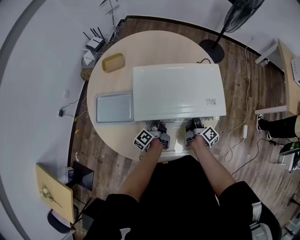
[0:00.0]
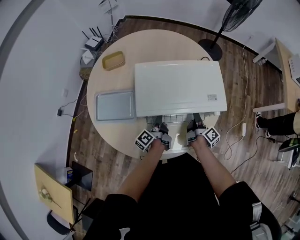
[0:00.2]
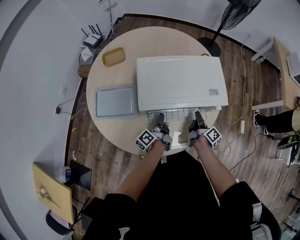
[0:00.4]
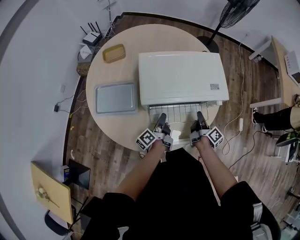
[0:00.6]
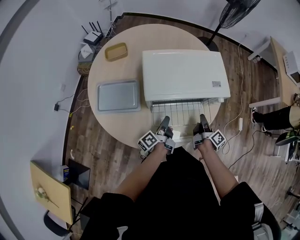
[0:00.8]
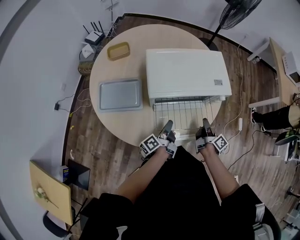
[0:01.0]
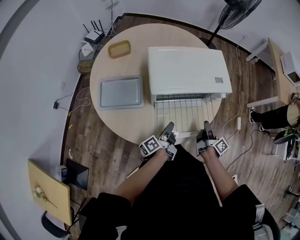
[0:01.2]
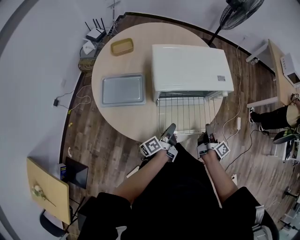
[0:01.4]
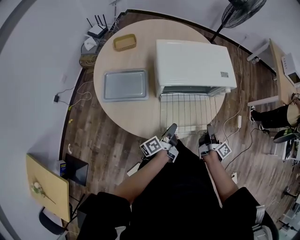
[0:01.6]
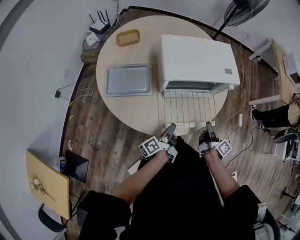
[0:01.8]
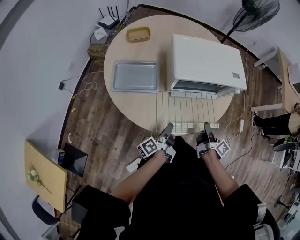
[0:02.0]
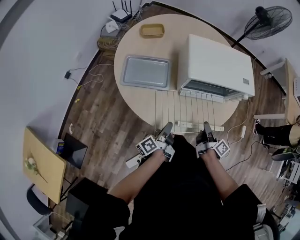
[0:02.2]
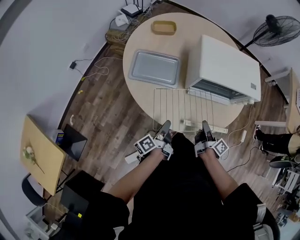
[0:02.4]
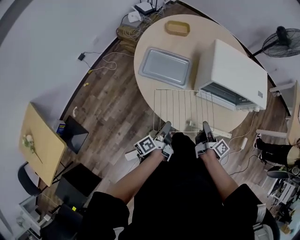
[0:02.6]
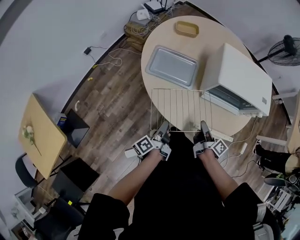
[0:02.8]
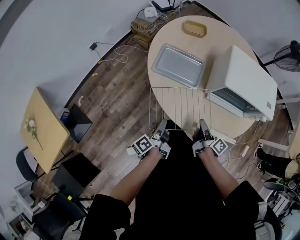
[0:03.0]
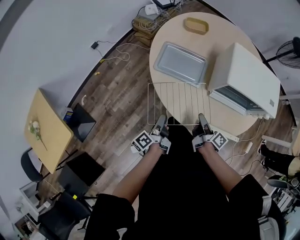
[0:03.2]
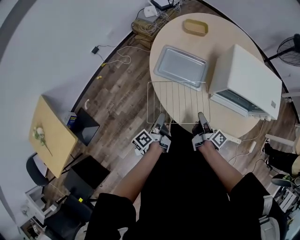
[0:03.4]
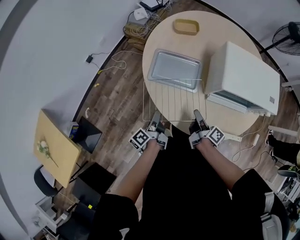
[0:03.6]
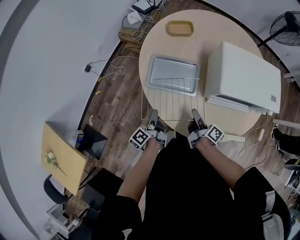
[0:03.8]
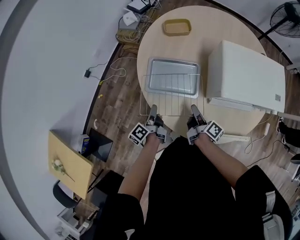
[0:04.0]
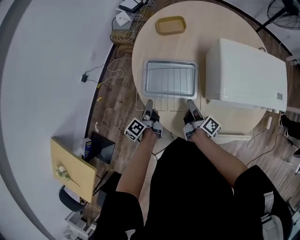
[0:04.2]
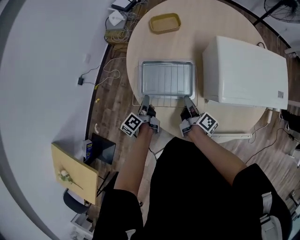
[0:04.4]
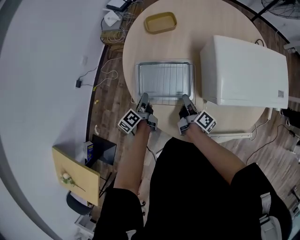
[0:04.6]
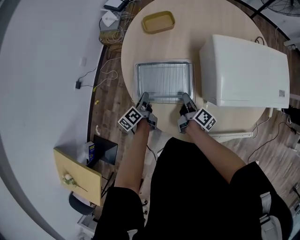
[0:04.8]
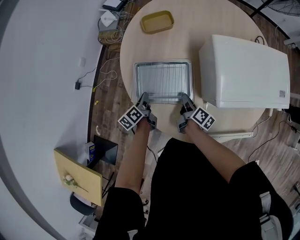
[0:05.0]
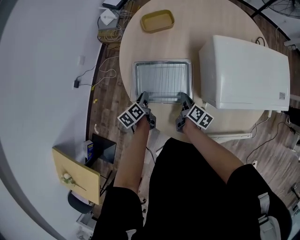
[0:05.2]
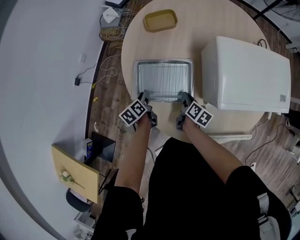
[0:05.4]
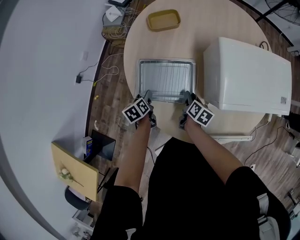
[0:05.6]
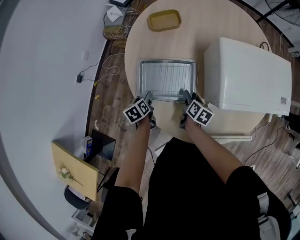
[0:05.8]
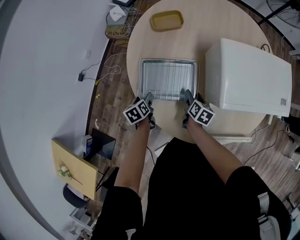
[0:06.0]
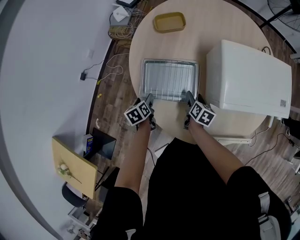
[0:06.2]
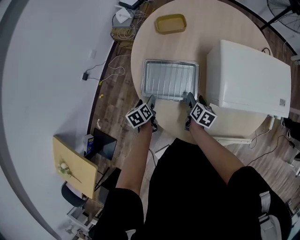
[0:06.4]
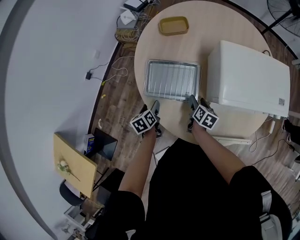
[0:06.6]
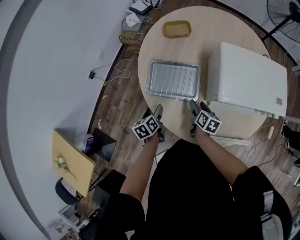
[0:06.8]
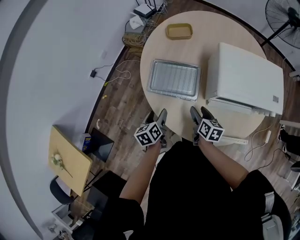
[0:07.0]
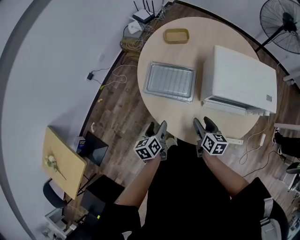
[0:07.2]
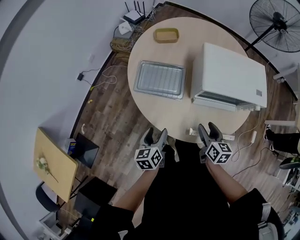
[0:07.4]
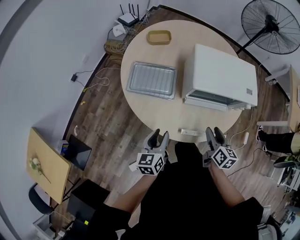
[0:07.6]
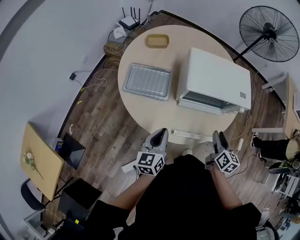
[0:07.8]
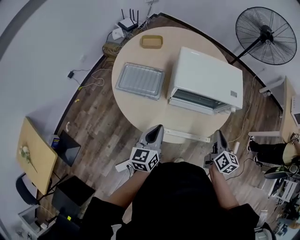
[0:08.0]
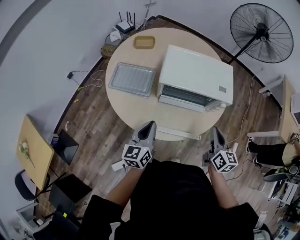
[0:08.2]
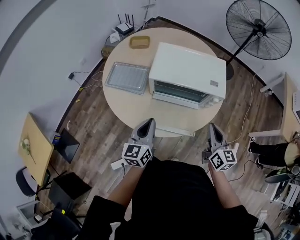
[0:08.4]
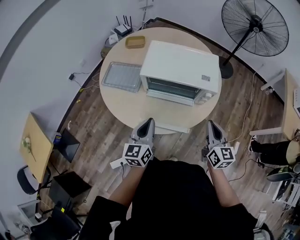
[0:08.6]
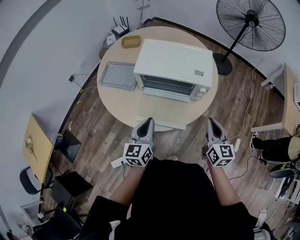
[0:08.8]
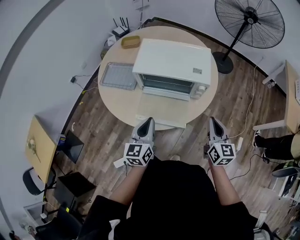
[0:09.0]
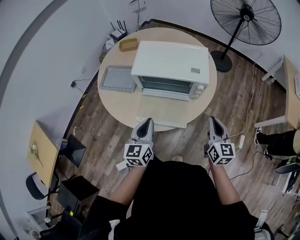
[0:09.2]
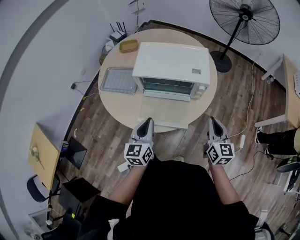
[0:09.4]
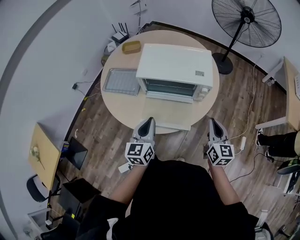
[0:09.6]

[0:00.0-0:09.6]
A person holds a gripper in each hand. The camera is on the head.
0:00.0 to 0:01.6: The grippers both shift backward by some 20 cm. The left gripper changes its angle by roughly 20 degrees.
0:01.6 to 0:03.2: The left gripper ends up approximately 30 cm from where it was, and turns by roughly 40 degrees. Meanwhile the right gripper moves some 30 cm, and swivels roughly 30 degrees.
0:03.2 to 0:04.8: The left gripper heads forward, covering approximately 30 cm, and swivels some 40 degrees; the right gripper goes some 25 cm forward and downward.
0:04.8 to 0:06.4: The left gripper moves approximately 5 cm, changes its angle by approximately 30 degrees, and opens, while the right gripper turns by about 40 degrees, and opens up.
0:06.4 to 0:08.0: Both grippers travel together to the right, backward and upward, approximately 40 cm. The left gripper tilts its fingers roughly 40 degrees upward, and closes its fingers, while the right gripper swivels roughly 30 degrees, and closes up.
0:08.0 to 0:09.6: Both grippers move to the right, some 15 cm.

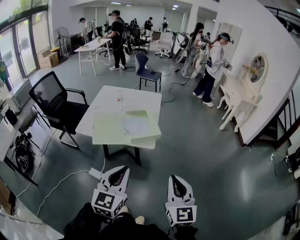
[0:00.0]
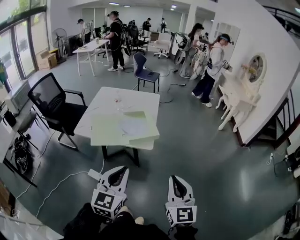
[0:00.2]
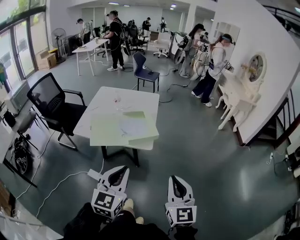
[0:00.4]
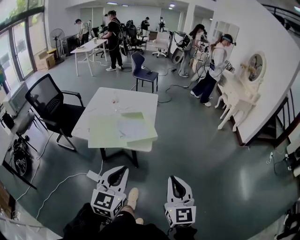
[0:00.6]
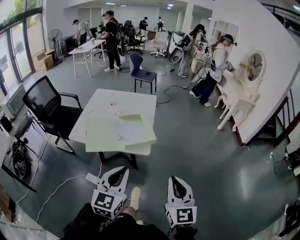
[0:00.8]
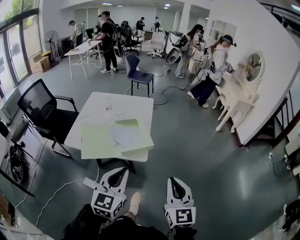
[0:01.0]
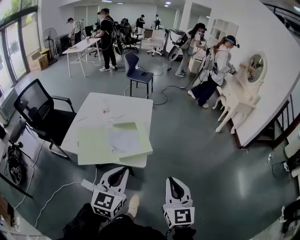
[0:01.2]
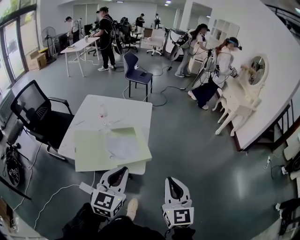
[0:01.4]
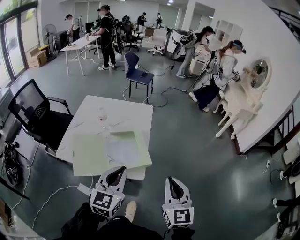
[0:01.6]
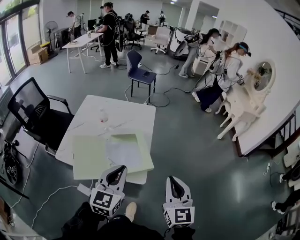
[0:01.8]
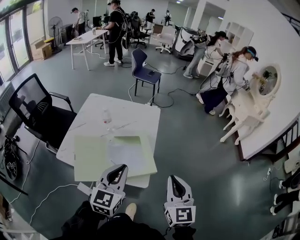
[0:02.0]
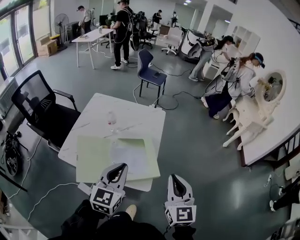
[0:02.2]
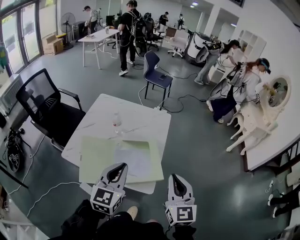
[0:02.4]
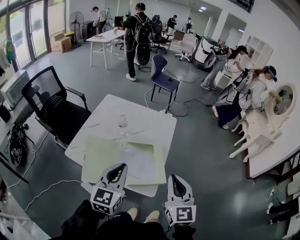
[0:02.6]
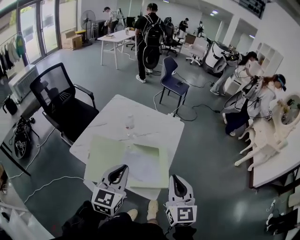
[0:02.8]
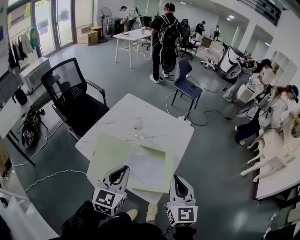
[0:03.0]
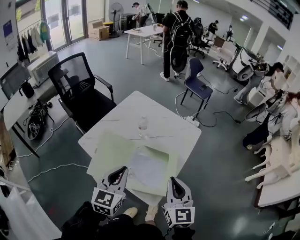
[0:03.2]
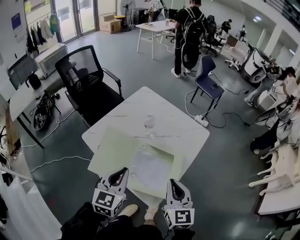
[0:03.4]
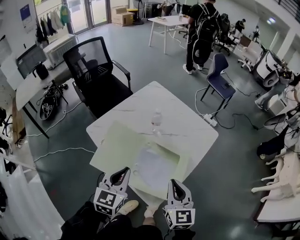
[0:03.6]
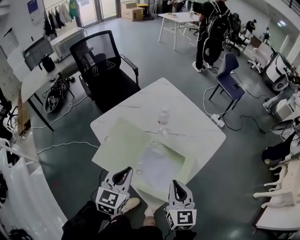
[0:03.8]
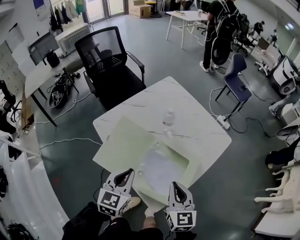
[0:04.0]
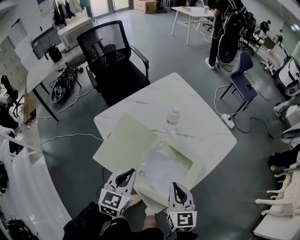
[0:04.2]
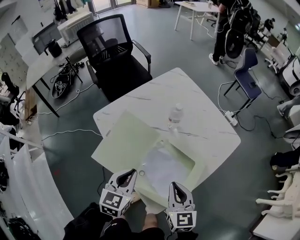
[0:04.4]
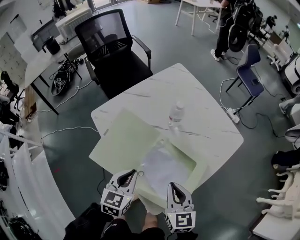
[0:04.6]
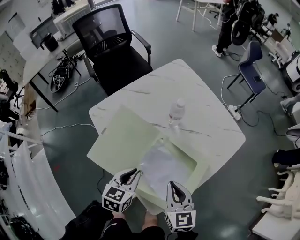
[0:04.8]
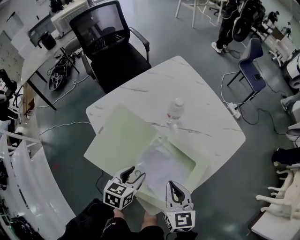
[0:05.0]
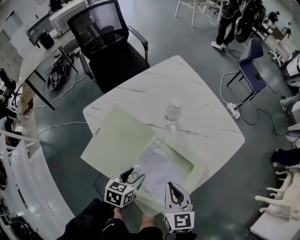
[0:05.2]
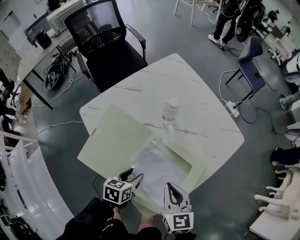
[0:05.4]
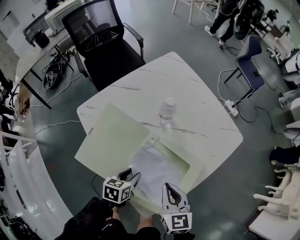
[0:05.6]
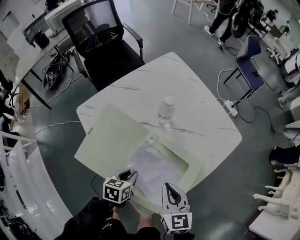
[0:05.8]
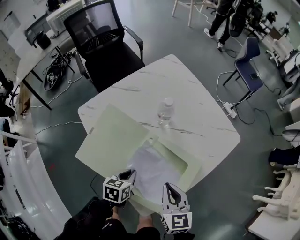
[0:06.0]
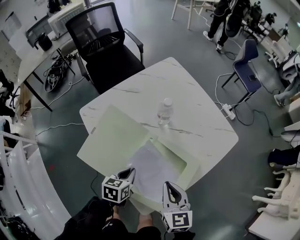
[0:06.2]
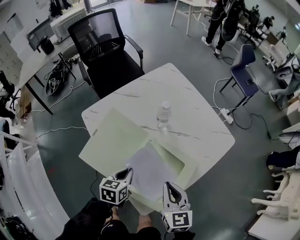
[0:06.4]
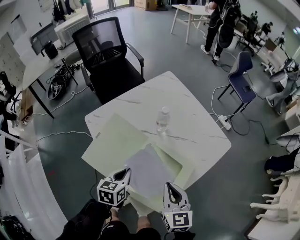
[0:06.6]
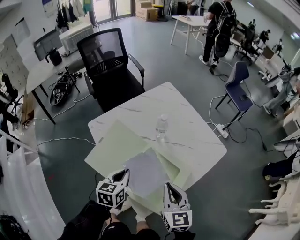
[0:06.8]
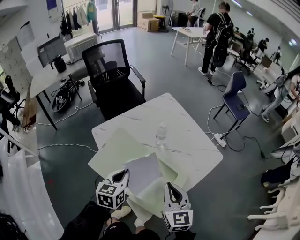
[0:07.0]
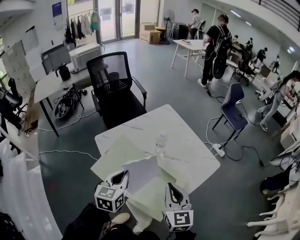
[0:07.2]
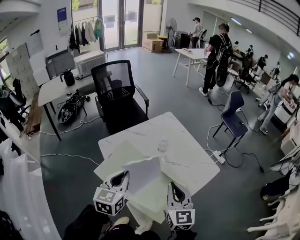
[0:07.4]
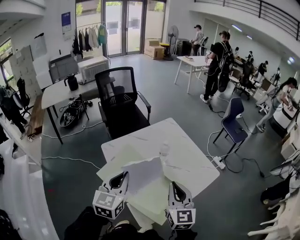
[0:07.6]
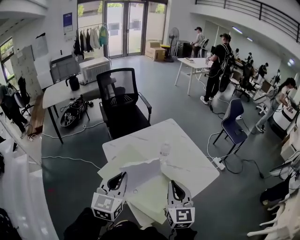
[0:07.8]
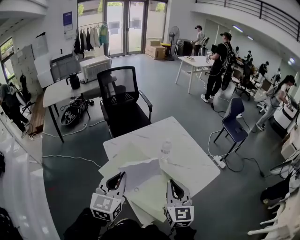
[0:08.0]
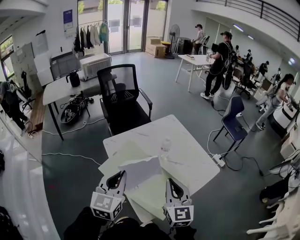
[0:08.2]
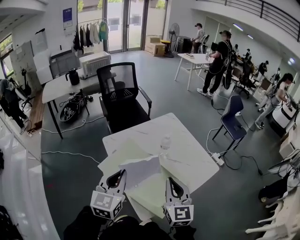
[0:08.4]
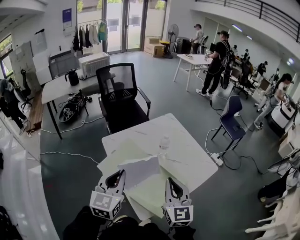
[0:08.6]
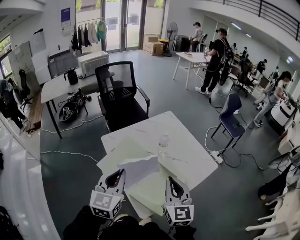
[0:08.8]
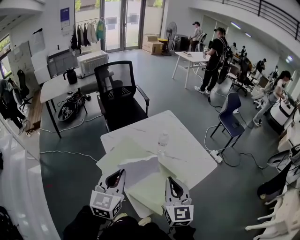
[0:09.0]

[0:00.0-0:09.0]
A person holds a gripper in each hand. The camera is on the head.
0:00.0 to 0:01.6: The grippers both shift forward by roughly 30 cm.
0:01.6 to 0:03.0: The two grippers go roughly 20 cm forward and to the left. The right gripper rotates some 20 degrees. The left gripper turns by roughly 20 degrees.
0:03.0 to 0:04.4: Both grippers move downward, approximately 20 cm. The left gripper rotates some 30 degrees, while the right gripper swivels about 30 degrees.
0:04.4 to 0:06.0: The left gripper shifts about 15 cm downward, swivels approximately 30 degrees, and opens and closes again. The right gripper moves downward, some 5 cm.
0:06.0 to 0:07.6: The right gripper moves upward, approximately 25 cm, and changes its angle by about 30 degrees. The left gripper heads upward, covering about 40 cm, and points its fingers some 40 degrees further upward.
0:07.6 to 0:09.0: The left gripper goes roughly 5 cm backward.

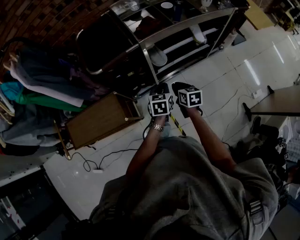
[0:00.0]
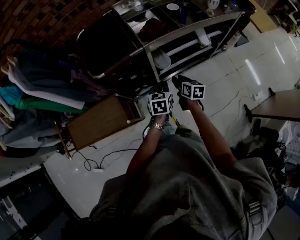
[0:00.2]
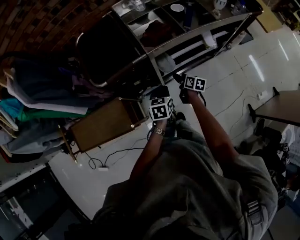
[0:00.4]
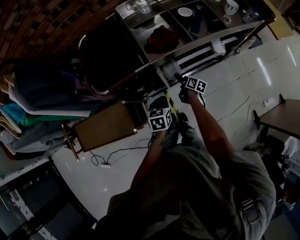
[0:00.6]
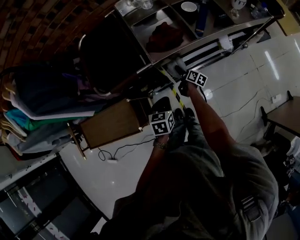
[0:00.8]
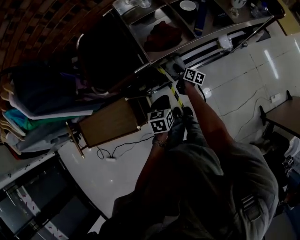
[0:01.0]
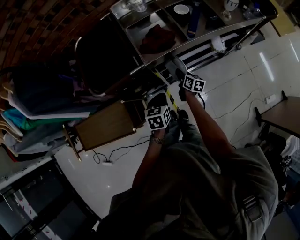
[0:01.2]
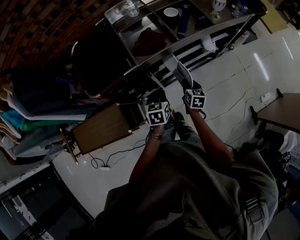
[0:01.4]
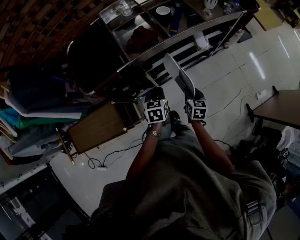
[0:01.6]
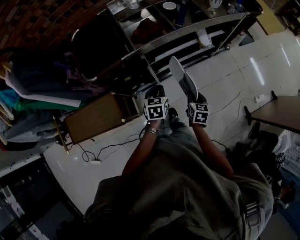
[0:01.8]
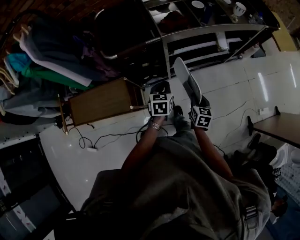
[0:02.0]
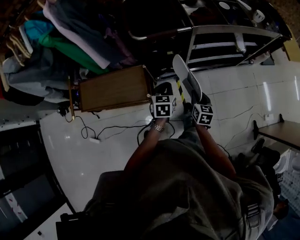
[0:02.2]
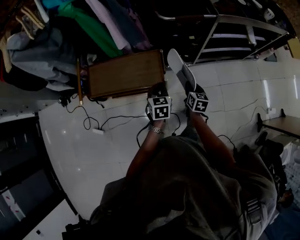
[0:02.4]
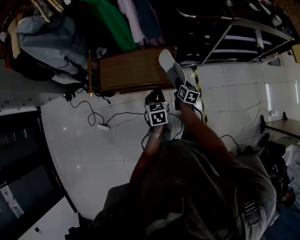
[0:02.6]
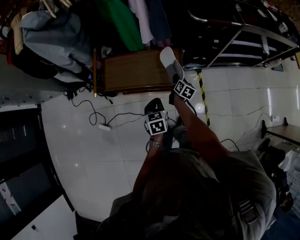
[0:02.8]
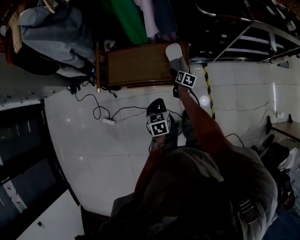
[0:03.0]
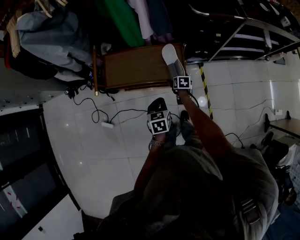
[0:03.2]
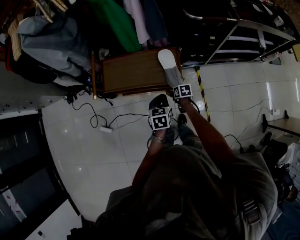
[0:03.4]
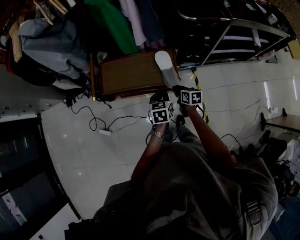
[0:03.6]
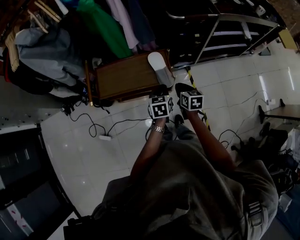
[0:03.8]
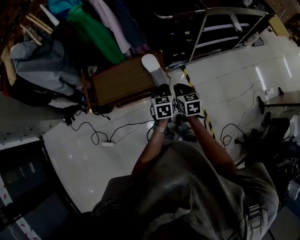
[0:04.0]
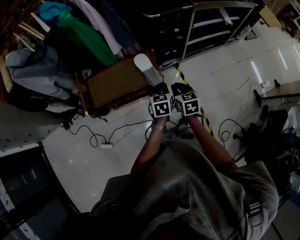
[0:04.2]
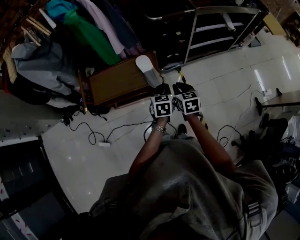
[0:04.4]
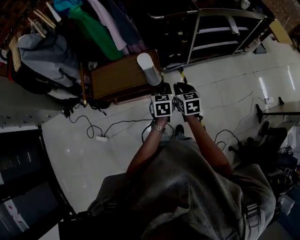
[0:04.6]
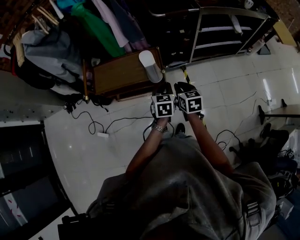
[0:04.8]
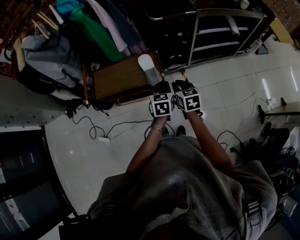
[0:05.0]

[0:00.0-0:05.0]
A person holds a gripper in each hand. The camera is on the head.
0:00.0 to 0:01.6: The right gripper goes roughly 10 cm to the right, travels forward and back again, about 25 cm each way, and opens, then closes once more; the left gripper heads forward, covering some 10 cm.
0:01.6 to 0:03.4: Both grippers are carried approximately 60 cm. The right gripper rotates approximately 40 degrees, and opens its fingers.
0:03.4 to 0:05.0: The right gripper moves upward, about 30 cm, swivels roughly 30 degrees, and closes up. The left gripper ends up approximately 20 cm from where it was.
